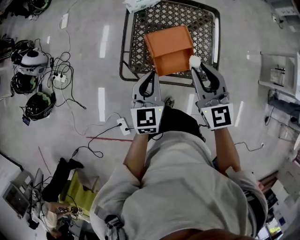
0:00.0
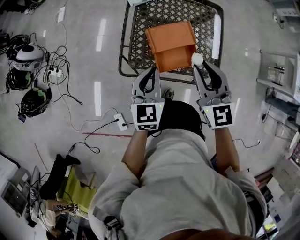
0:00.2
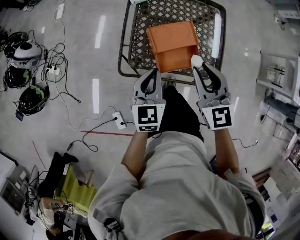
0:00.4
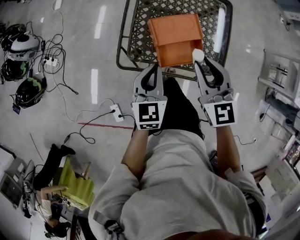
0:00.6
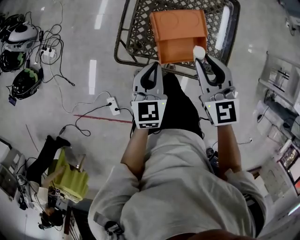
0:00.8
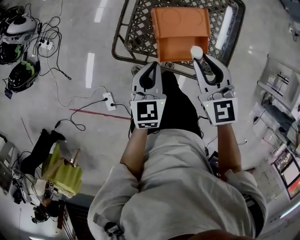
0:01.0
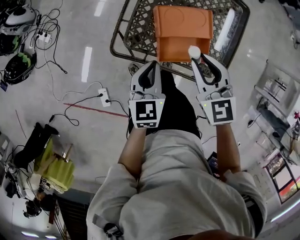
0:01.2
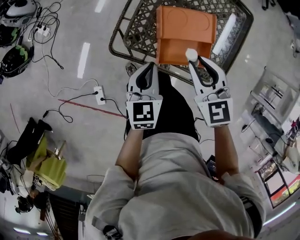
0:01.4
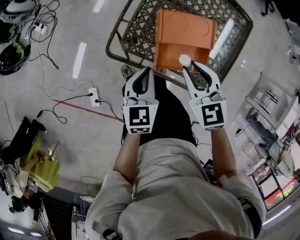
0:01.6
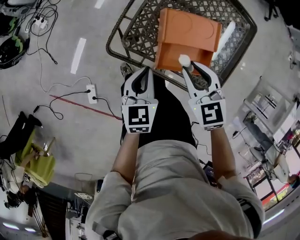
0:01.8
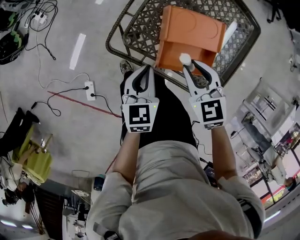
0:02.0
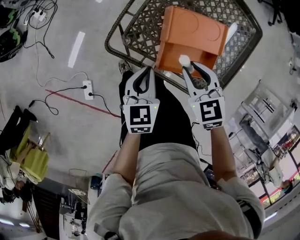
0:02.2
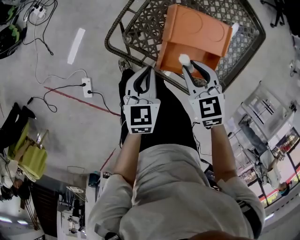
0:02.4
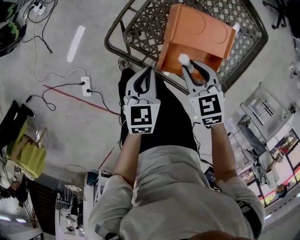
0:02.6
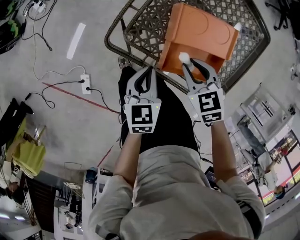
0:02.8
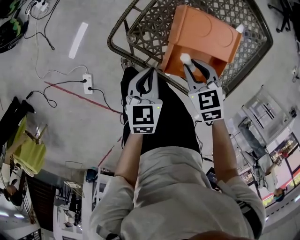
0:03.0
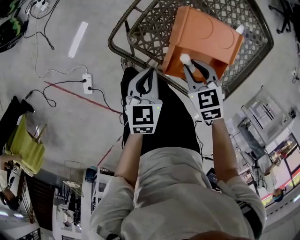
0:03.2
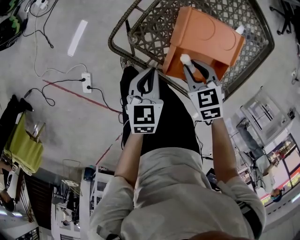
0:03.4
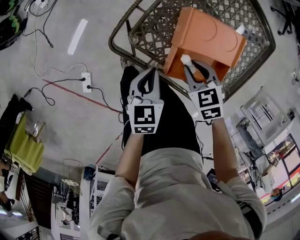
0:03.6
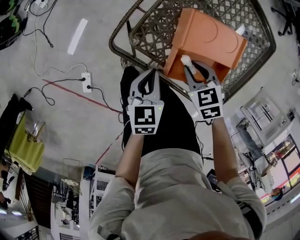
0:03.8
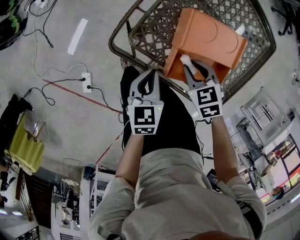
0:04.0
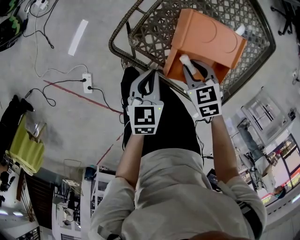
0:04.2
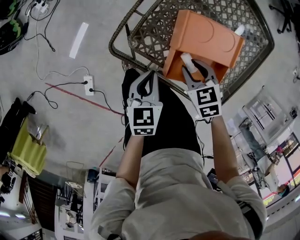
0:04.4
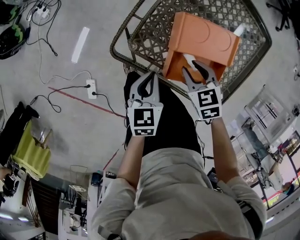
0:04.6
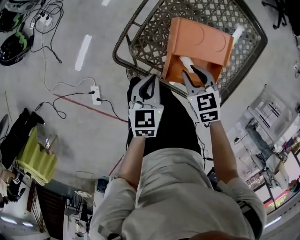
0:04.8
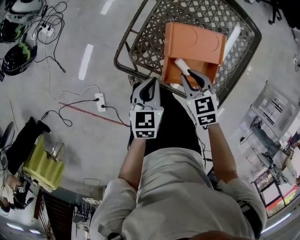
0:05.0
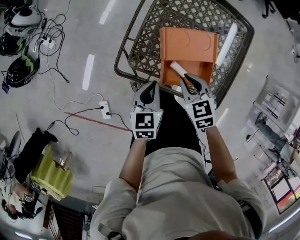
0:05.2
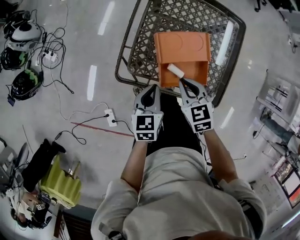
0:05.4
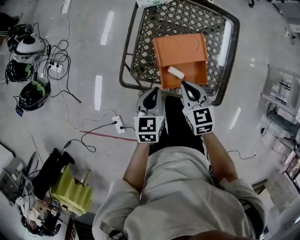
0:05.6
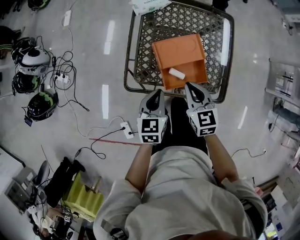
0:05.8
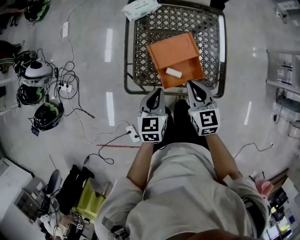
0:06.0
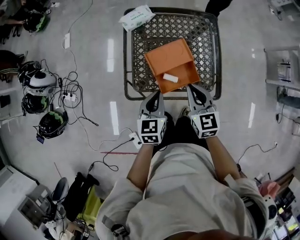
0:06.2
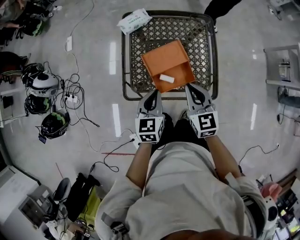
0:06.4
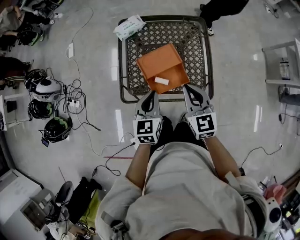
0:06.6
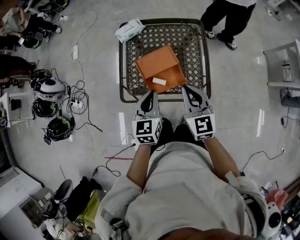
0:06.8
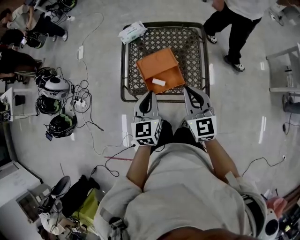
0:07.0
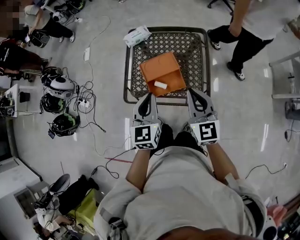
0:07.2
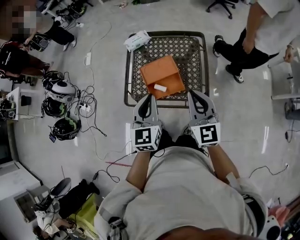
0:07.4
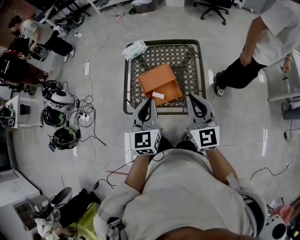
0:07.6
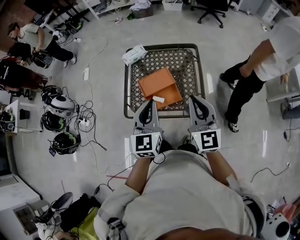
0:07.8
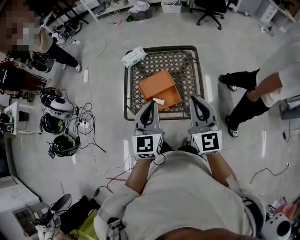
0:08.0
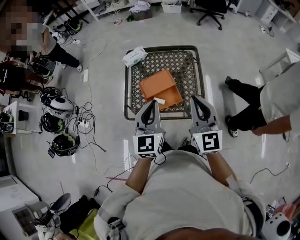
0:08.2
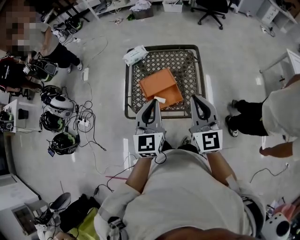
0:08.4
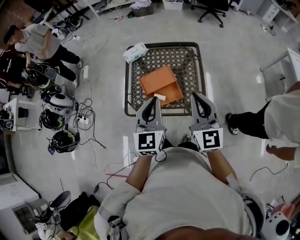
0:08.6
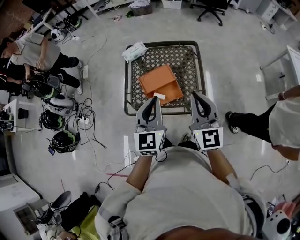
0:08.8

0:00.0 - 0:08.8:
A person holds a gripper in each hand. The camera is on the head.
0:00.0 - 0:01.4: Both grippers travel together downward, roughly 15 cm. The right gripper changes its angle by roughly 30 degrees.
0:01.4 - 0:03.0: The left gripper travels downward by some 10 cm, while the right gripper is displaced downward by about 15 cm, and rotates some 30 degrees.
0:03.0 - 0:04.4: There are only small adjustments of the grippers.
0:04.4 - 0:05.8: Both grippers move upward, approximately 15 cm. The right gripper swivels about 50 degrees, and closes up, while the left gripper changes its angle by approximately 30 degrees.
0:05.8 - 0:07.4: The grippers both shift upward and to the right by approximately 25 cm. The left gripper turns by some 30 degrees. Meanwhile the right gripper tilts its fingers about 30 degrees upward.
0:07.4 - 0:08.8: The right gripper moves upward, approximately 5 cm.

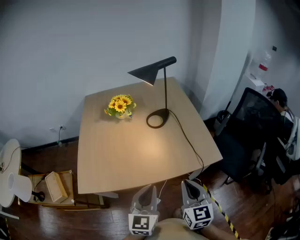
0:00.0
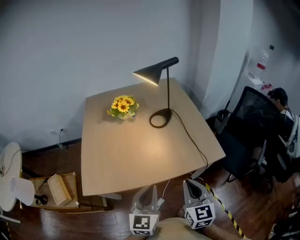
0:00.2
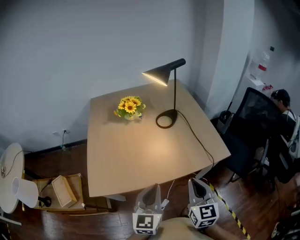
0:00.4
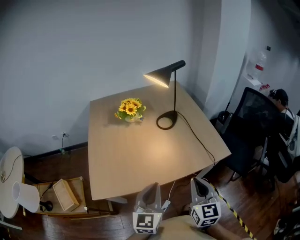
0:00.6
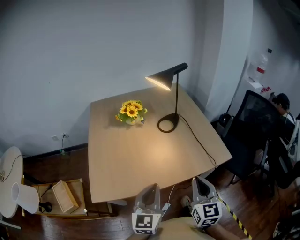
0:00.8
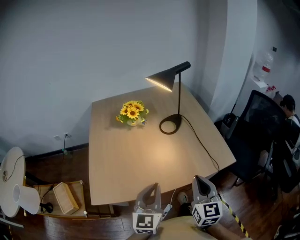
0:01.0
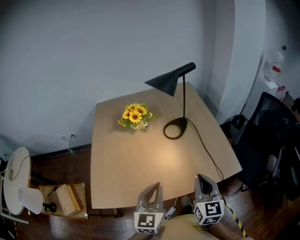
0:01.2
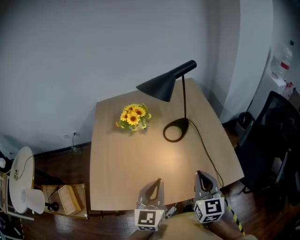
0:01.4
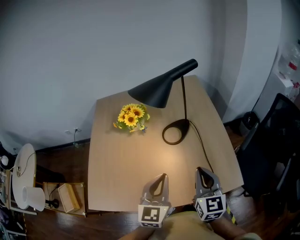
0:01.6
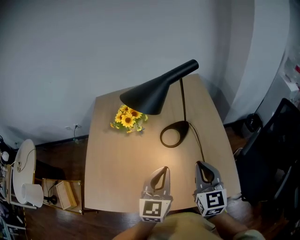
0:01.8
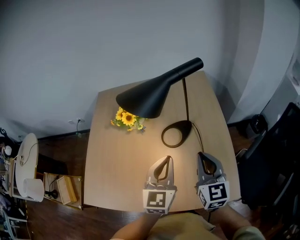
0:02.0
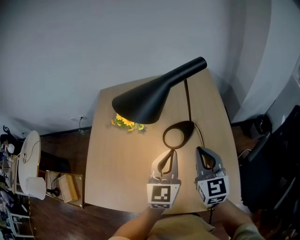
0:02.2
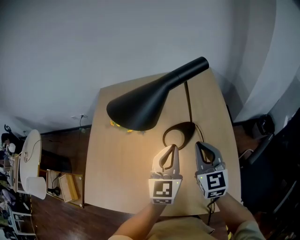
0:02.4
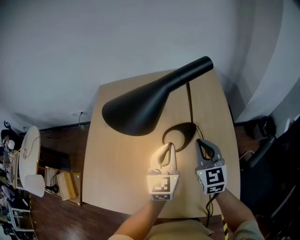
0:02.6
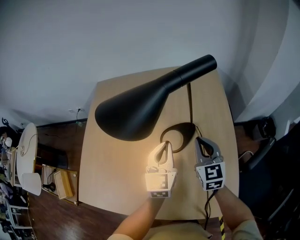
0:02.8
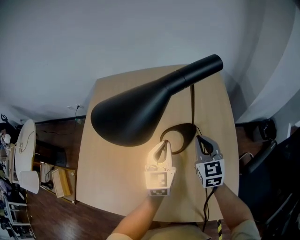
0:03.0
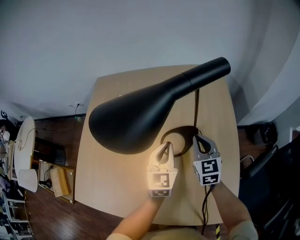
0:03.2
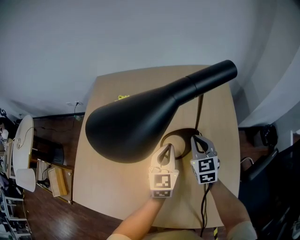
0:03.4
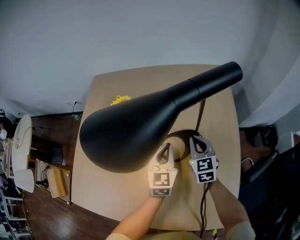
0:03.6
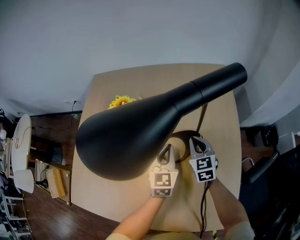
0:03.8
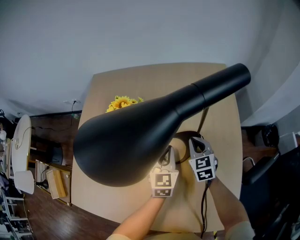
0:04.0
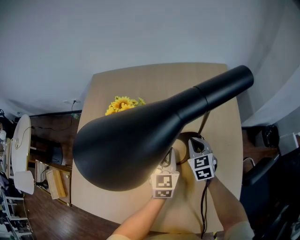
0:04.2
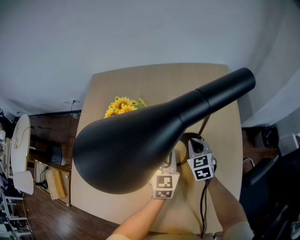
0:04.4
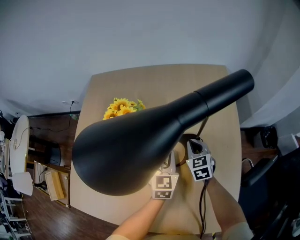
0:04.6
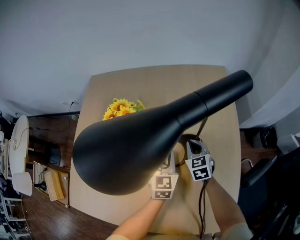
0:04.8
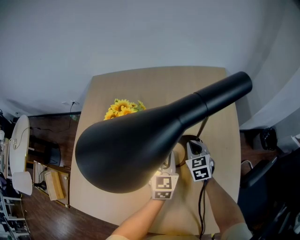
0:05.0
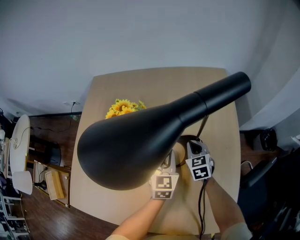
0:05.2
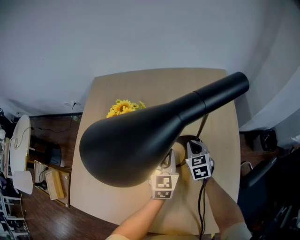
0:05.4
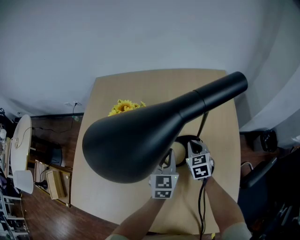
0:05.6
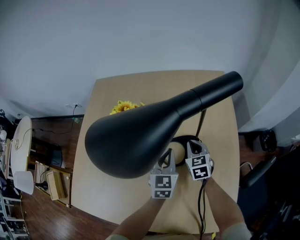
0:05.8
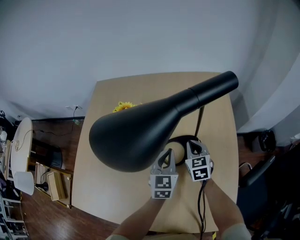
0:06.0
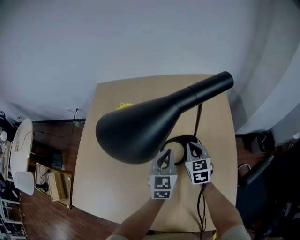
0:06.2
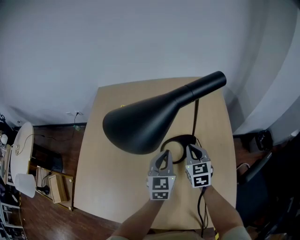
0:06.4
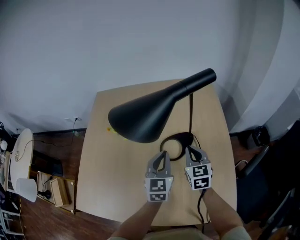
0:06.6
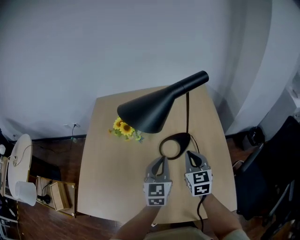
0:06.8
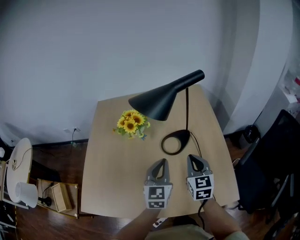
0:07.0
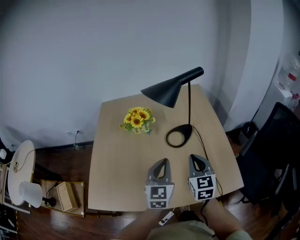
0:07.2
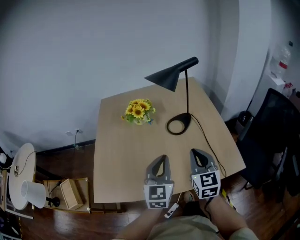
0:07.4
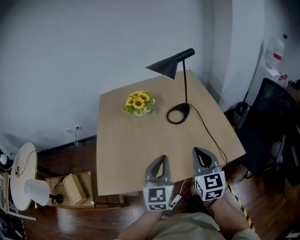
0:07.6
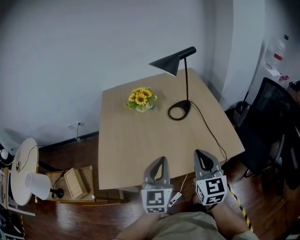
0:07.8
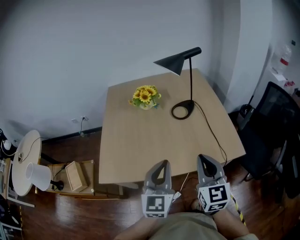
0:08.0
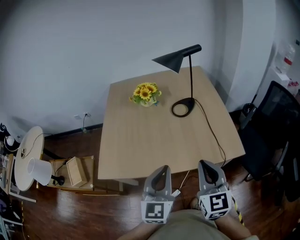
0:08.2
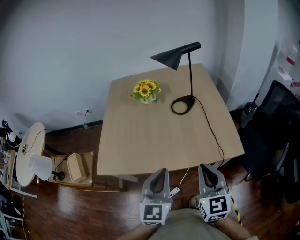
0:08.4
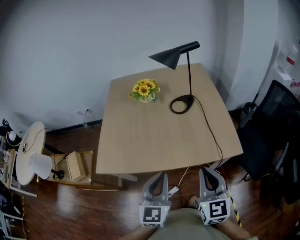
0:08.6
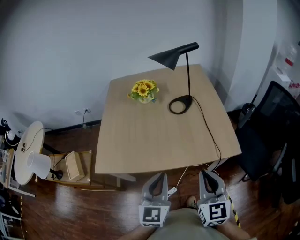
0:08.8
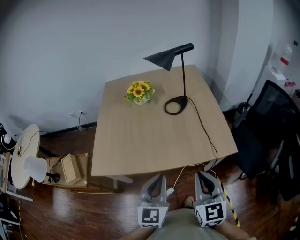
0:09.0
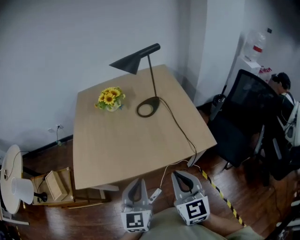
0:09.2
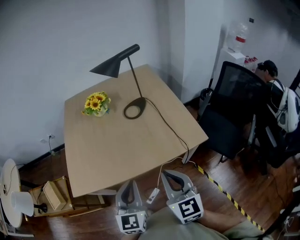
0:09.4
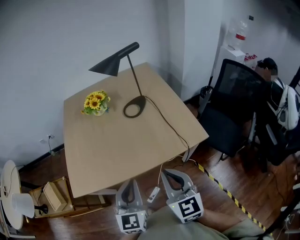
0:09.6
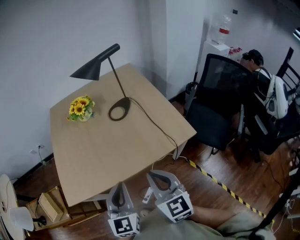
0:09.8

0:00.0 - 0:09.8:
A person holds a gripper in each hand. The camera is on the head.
0:00.0 - 0:01.4: The two grippers go approximately 15 cm forward.
0:01.4 - 0:02.8: Both grippers travel together forward, about 30 cm.
0:02.8 - 0:04.2: Both grippers move downward and forward, some 15 cm.
0:04.2 - 0:05.6: The grippers make only small movements.
0:05.6 - 0:07.0: The two grippers go about 25 cm backward and upward. The right gripper rotates roughly 20 degrees.
0:07.0 - 0:08.4: The grippers both shift backward by approximately 35 cm.
0:08.4 - 0:09.8: The grippers make only small movements.

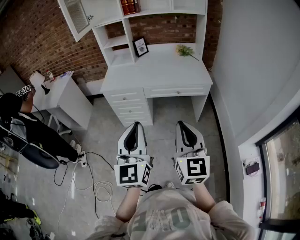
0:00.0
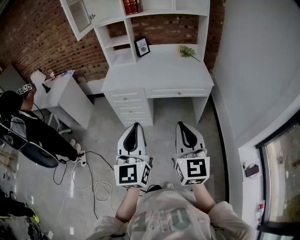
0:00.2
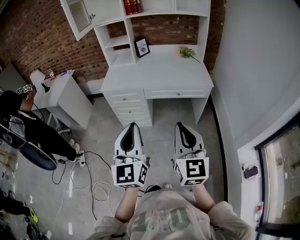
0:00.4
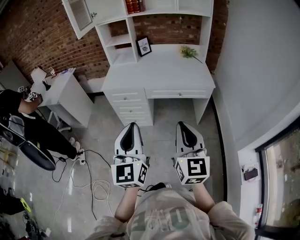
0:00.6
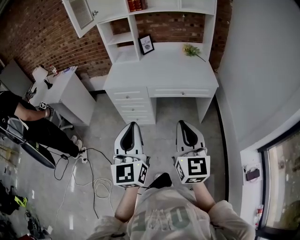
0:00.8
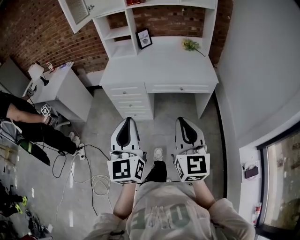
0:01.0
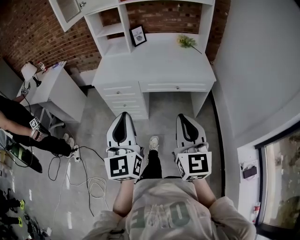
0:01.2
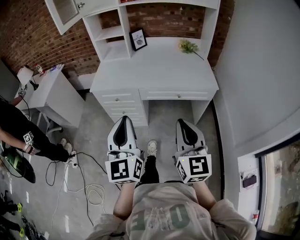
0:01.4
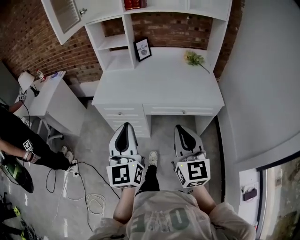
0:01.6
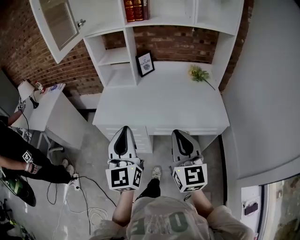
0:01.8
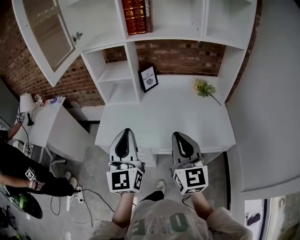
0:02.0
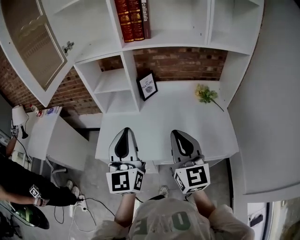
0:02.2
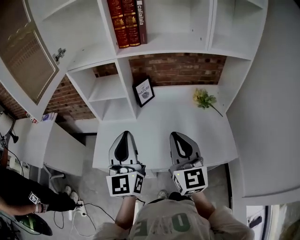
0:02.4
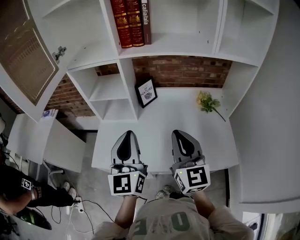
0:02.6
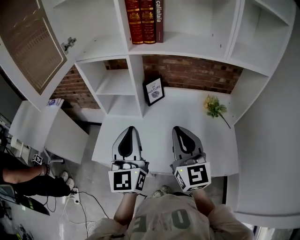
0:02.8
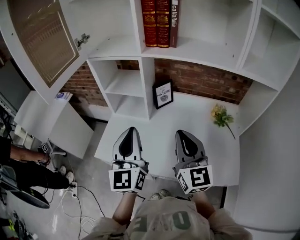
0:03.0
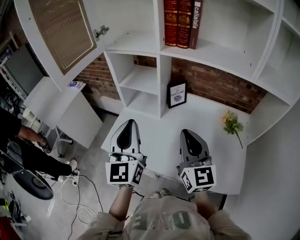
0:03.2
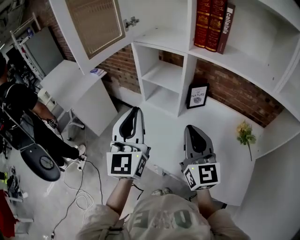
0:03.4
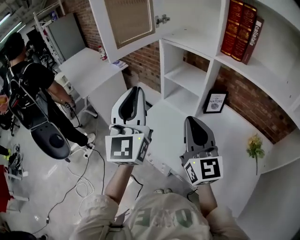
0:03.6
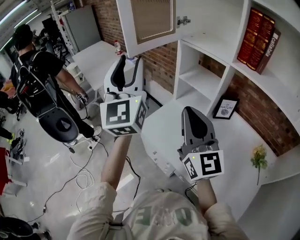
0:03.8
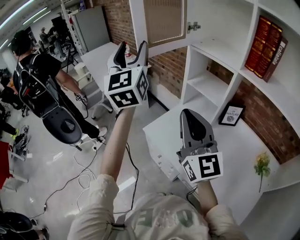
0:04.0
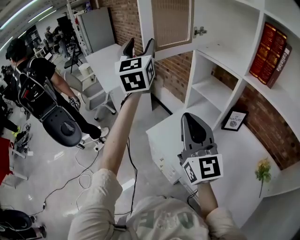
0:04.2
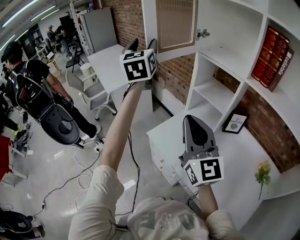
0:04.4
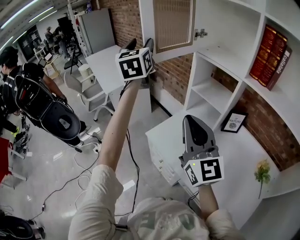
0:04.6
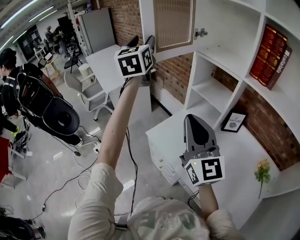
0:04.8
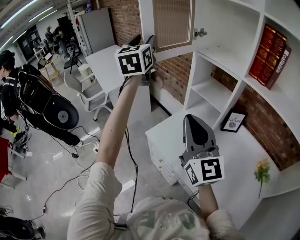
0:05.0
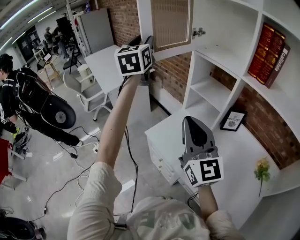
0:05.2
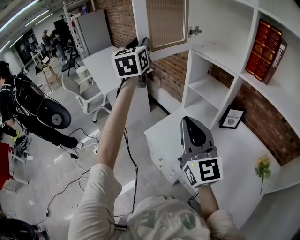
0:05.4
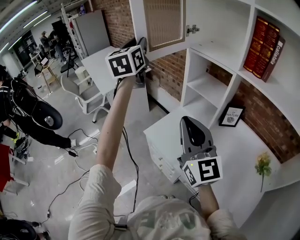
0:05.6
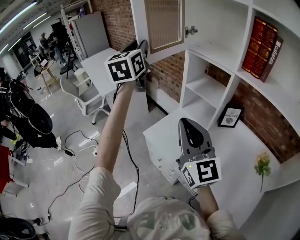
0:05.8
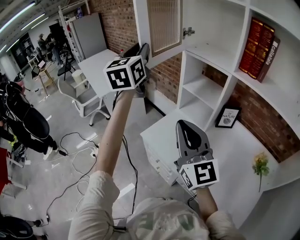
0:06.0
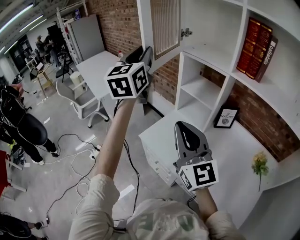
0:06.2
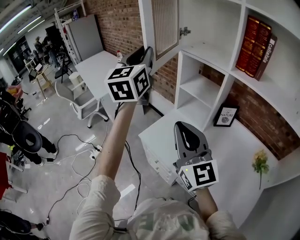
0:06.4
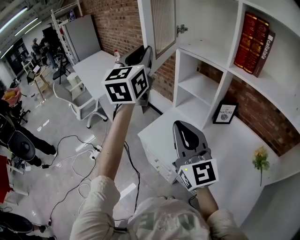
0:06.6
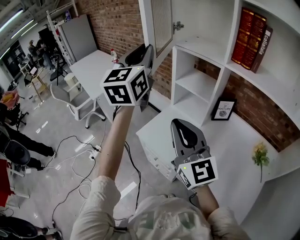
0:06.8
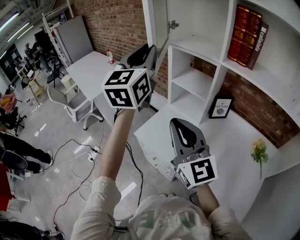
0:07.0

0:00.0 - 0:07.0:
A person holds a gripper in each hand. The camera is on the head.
0:00.0 - 0:01.4: The two grippers go some 15 cm forward.
0:01.4 - 0:02.8: The two grippers travel together, forward, approximately 50 cm.
0:02.8 - 0:04.2: The right gripper shifts by some 25 cm, and swivels some 50 degrees; the left gripper moves approximately 40 cm, turns by roughly 50 degrees, and opens its fingers.
0:04.2 - 0:05.6: The left gripper closes.
0:05.6 - 0:07.0: The left gripper travels to the right and backward by some 15 cm.
